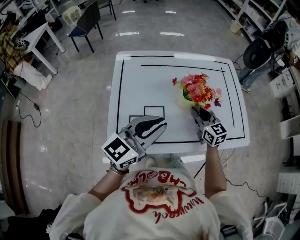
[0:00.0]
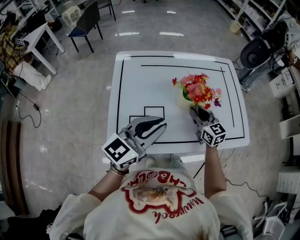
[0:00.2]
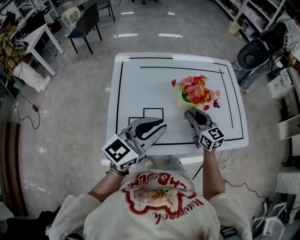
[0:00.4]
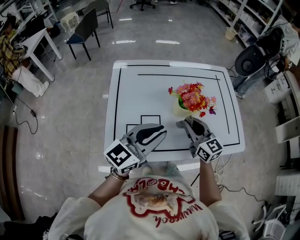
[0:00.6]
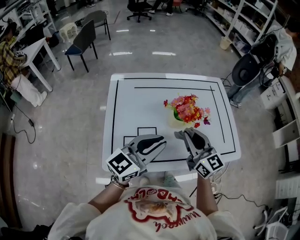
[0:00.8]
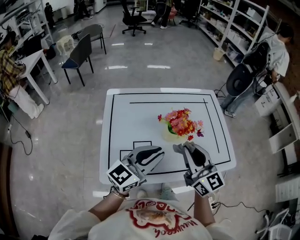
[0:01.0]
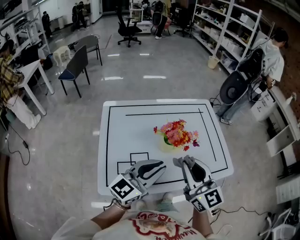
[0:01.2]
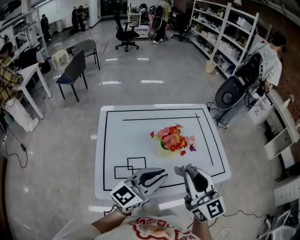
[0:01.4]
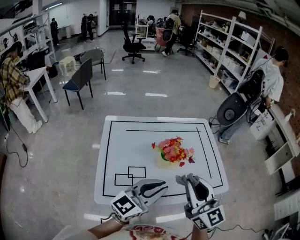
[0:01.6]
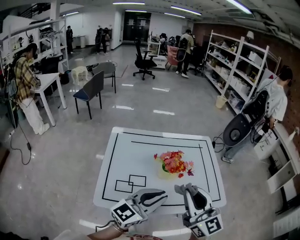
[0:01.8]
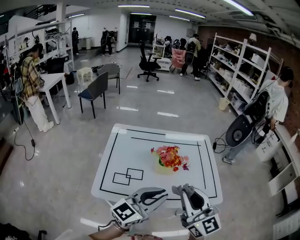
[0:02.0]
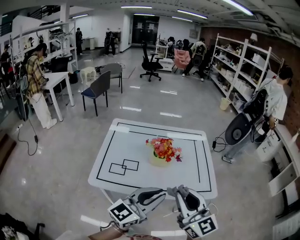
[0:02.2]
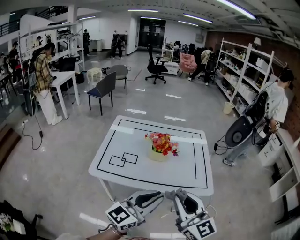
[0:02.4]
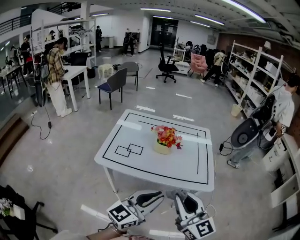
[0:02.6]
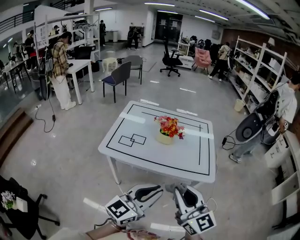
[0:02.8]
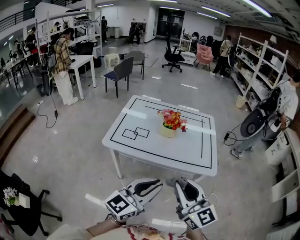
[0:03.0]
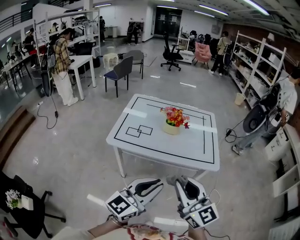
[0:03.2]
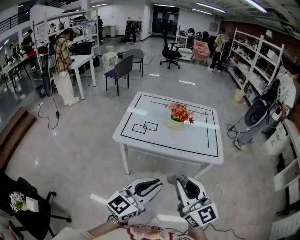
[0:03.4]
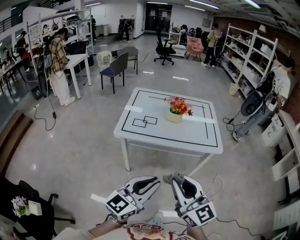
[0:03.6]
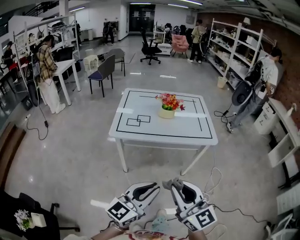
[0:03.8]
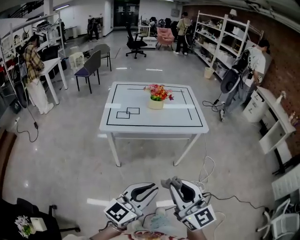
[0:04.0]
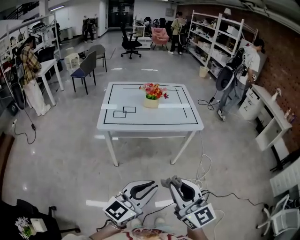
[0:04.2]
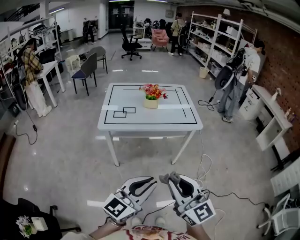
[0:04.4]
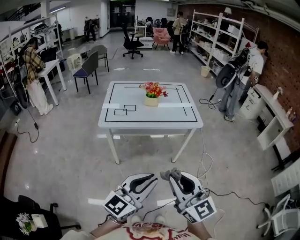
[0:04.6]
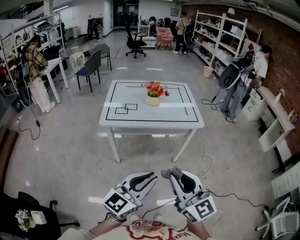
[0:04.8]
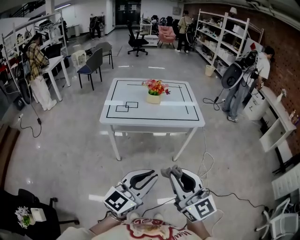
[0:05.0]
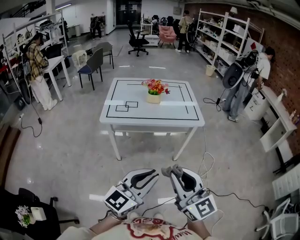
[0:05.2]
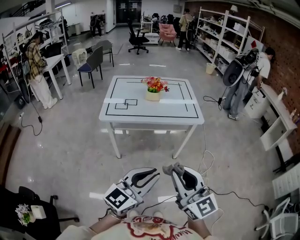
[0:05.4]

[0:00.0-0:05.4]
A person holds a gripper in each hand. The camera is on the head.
0:00.0 to 0:01.4: The right gripper shifts some 25 cm upward and backward, and swivels approximately 20 degrees, while the left gripper travels to the right by roughly 5 cm.
0:01.4 to 0:02.8: Both grippers travel together backward and to the right, roughly 30 cm. The left gripper swivels about 20 degrees, while the right gripper rotates approximately 20 degrees.
0:02.8 to 0:04.0: Both grippers move backward and to the left, about 25 cm.
0:04.0 to 0:05.4: The two grippers go about 5 cm to the right.

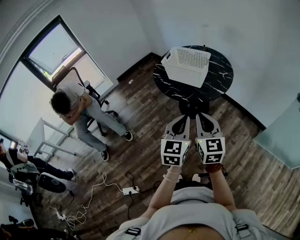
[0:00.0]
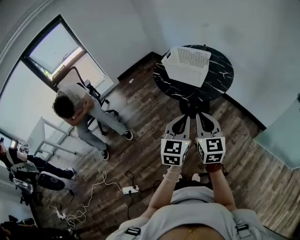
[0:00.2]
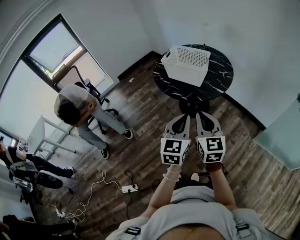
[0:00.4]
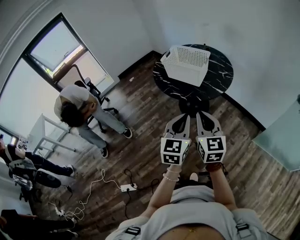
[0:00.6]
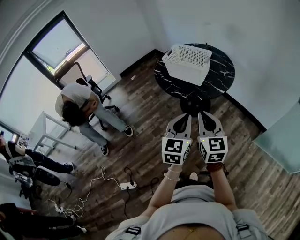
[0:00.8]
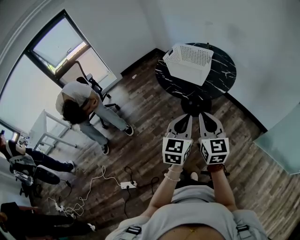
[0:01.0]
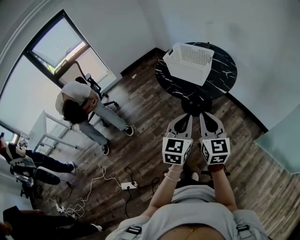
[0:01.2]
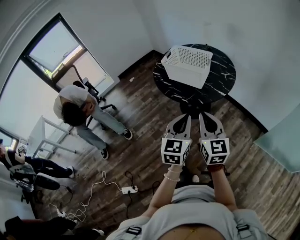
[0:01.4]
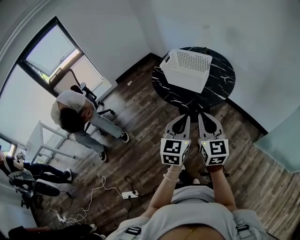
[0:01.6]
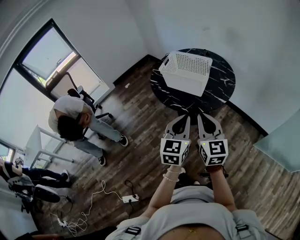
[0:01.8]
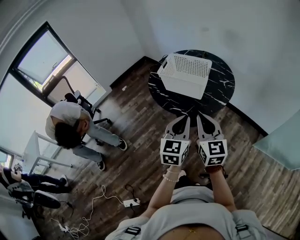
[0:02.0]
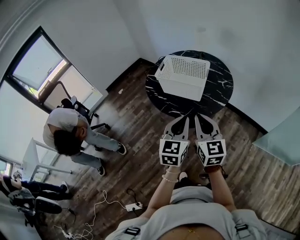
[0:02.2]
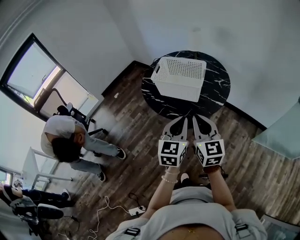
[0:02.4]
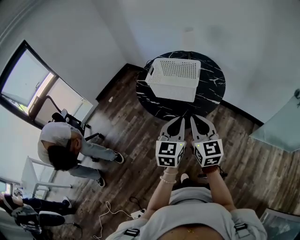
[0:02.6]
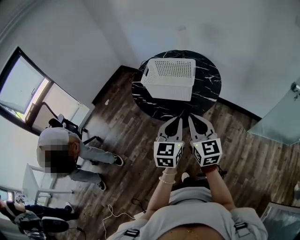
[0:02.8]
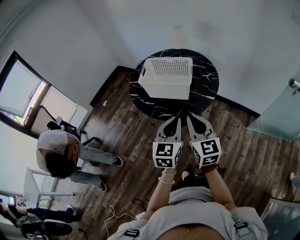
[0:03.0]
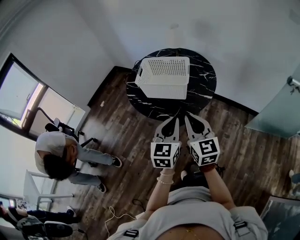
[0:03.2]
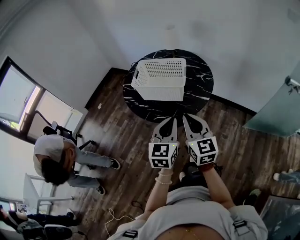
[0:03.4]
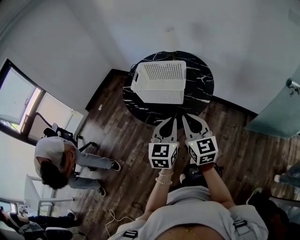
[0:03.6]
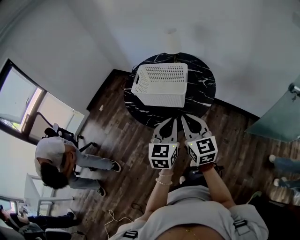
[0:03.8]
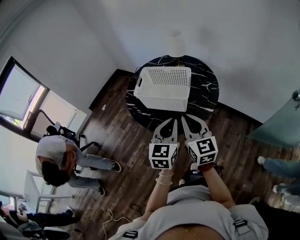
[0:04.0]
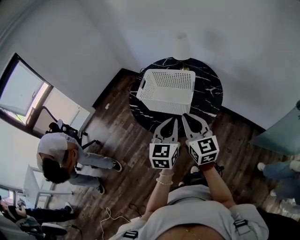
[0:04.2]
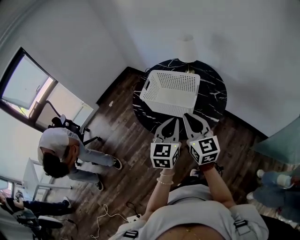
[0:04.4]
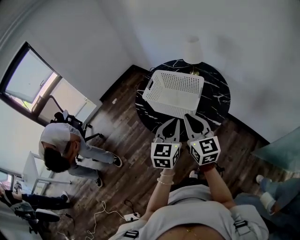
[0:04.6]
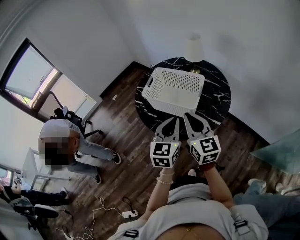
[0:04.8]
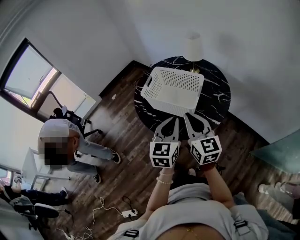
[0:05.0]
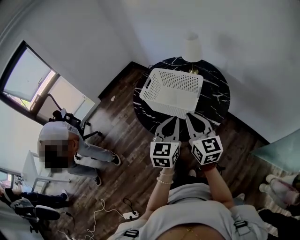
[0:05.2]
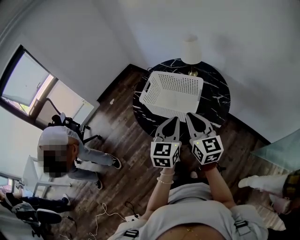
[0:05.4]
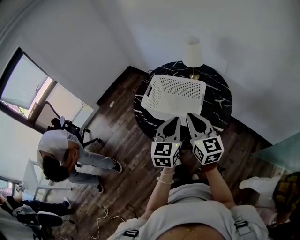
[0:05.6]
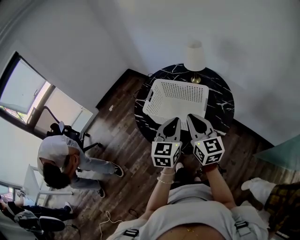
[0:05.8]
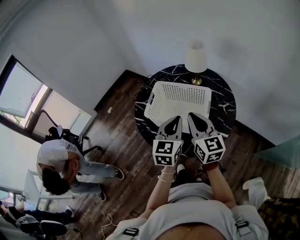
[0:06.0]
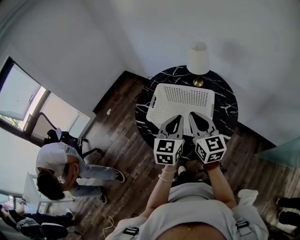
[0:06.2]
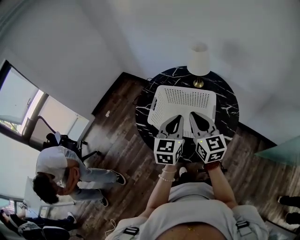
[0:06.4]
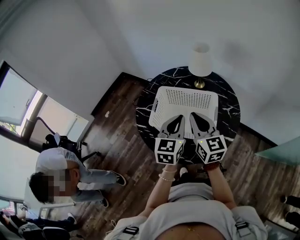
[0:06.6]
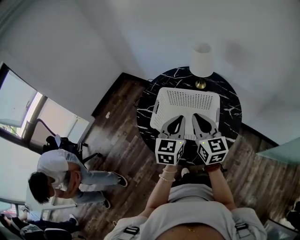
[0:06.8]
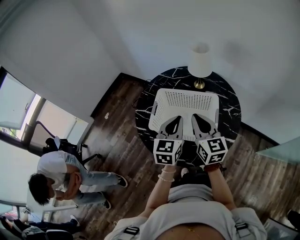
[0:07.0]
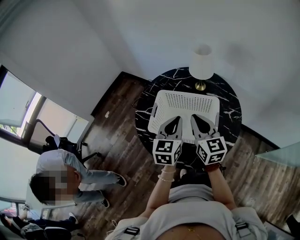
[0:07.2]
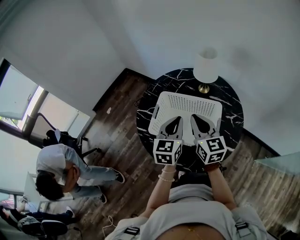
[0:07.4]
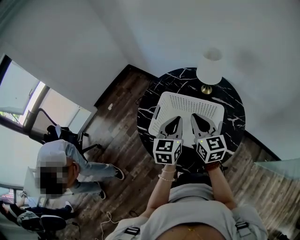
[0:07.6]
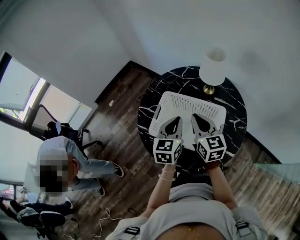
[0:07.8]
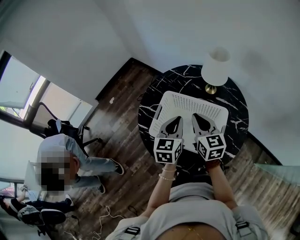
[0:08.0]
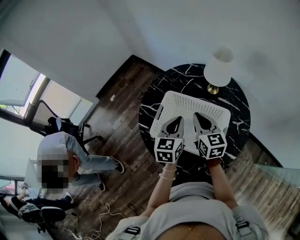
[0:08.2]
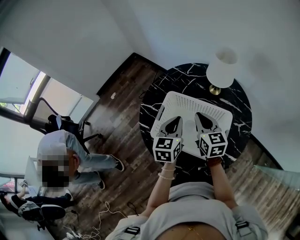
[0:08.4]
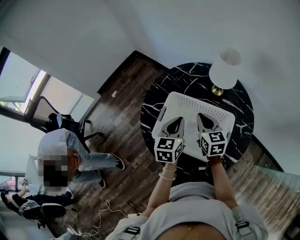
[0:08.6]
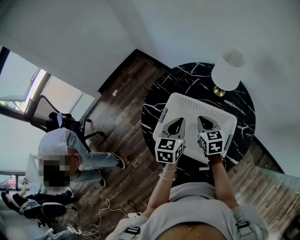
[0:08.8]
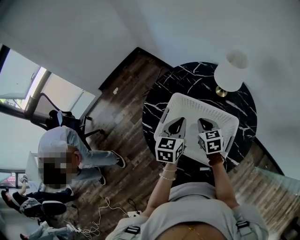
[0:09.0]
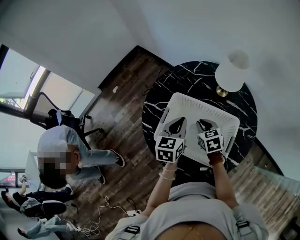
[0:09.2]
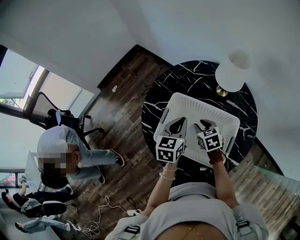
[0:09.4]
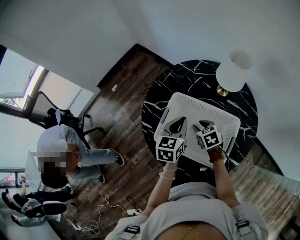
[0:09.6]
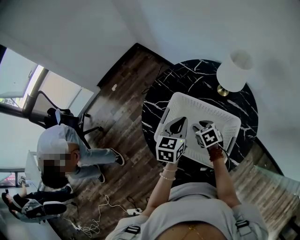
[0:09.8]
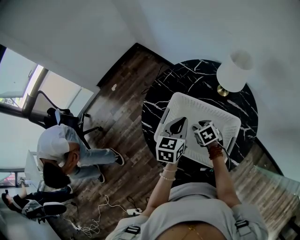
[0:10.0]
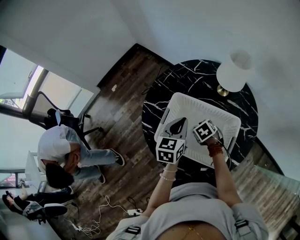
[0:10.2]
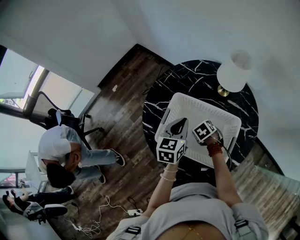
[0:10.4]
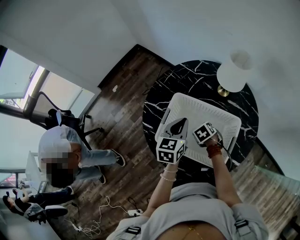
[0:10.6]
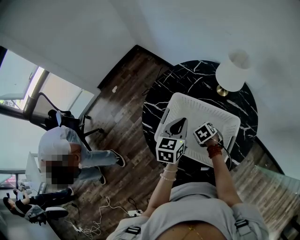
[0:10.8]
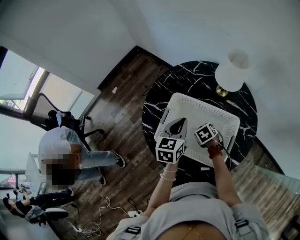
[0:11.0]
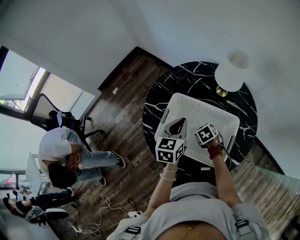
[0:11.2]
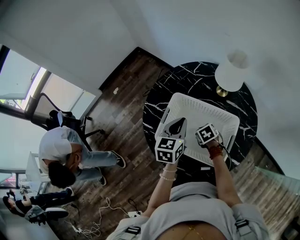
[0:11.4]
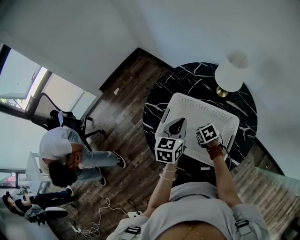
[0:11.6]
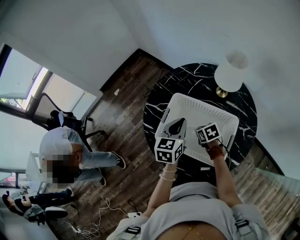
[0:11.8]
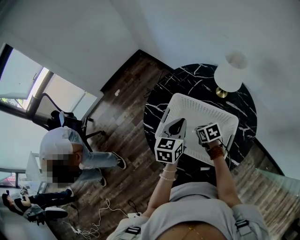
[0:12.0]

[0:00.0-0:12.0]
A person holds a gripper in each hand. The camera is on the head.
0:00.0 to 0:01.6: Both grippers travel together forward, roughly 5 cm.
0:01.6 to 0:03.0: Both grippers travel together forward and to the left, approximately 10 cm.
0:03.0 to 0:04.4: Both grippers travel together forward, about 15 cm.
0:04.4 to 0:06.0: Both grippers travel together forward, about 15 cm.
0:06.0 to 0:07.6: Both grippers move forward, some 15 cm.
0:07.6 to 0:09.0: The left gripper heads forward and downward, covering some 10 cm. The right gripper shifts about 20 cm downward and forward, and turns by roughly 30 degrees.
0:09.0 to 0:10.4: The right gripper heads downward, covering roughly 10 cm, angles its fingers downward, by about 30 degrees, and opens.
0:10.4 to 0:12.0: The right gripper turns by about 20 degrees, and closes up.

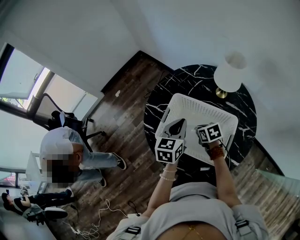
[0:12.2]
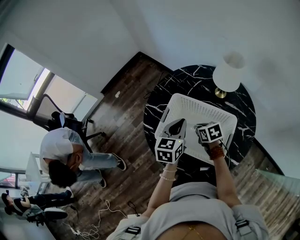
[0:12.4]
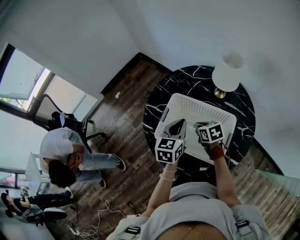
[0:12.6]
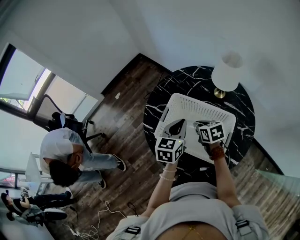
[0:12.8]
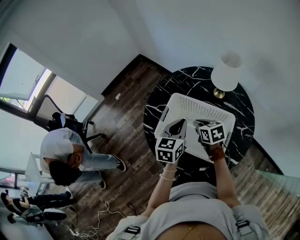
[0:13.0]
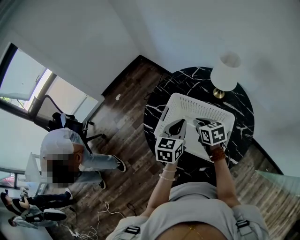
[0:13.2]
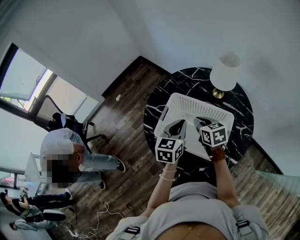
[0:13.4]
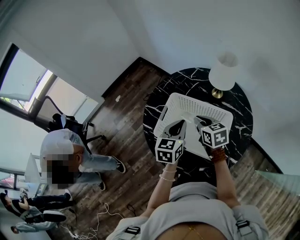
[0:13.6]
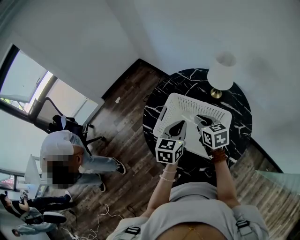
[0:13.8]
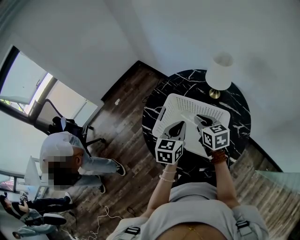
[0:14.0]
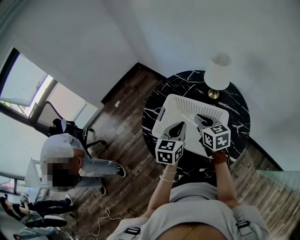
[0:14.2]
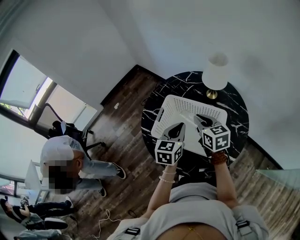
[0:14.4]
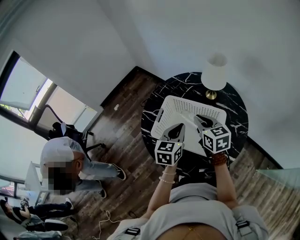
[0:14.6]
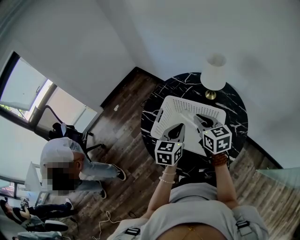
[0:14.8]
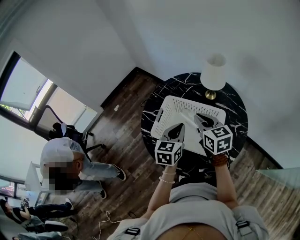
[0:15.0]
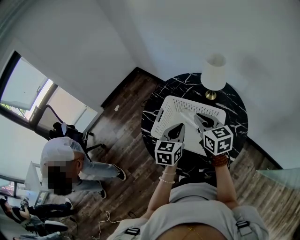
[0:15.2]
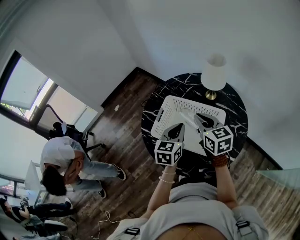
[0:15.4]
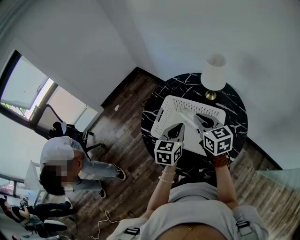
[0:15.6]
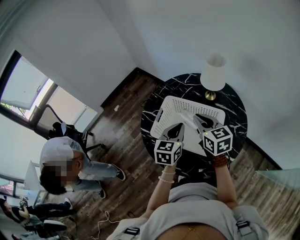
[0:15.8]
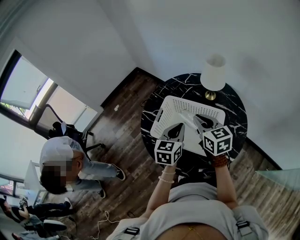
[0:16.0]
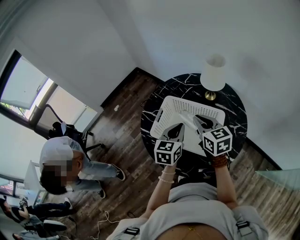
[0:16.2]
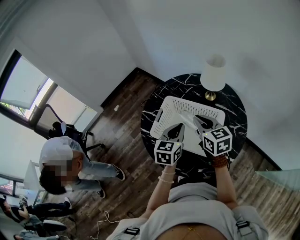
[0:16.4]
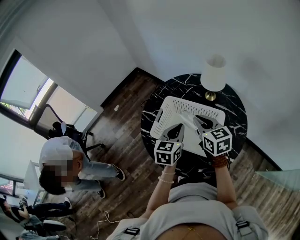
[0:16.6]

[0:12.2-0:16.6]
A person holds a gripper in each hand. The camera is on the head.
0:12.2 to 0:13.6: The right gripper shifts some 15 cm upward, and changes its angle by approximately 20 degrees.
0:13.6 to 0:15.2: The right gripper heads upward, covering some 10 cm.
0:15.2 to 0:16.6: Both grippers stay about where they are.

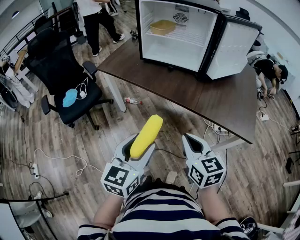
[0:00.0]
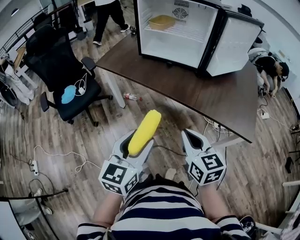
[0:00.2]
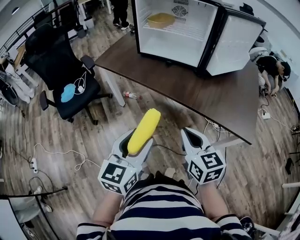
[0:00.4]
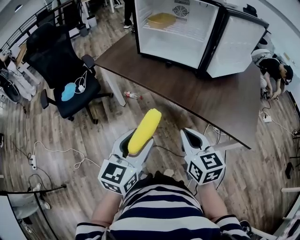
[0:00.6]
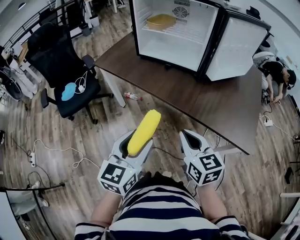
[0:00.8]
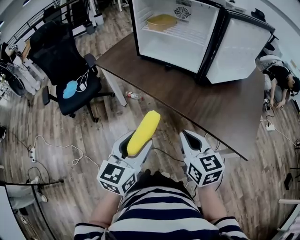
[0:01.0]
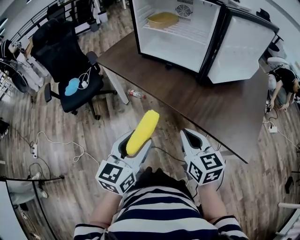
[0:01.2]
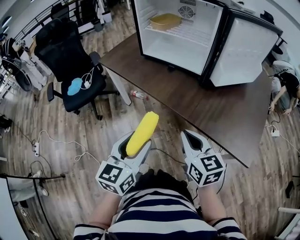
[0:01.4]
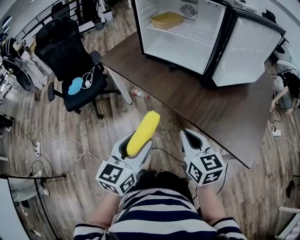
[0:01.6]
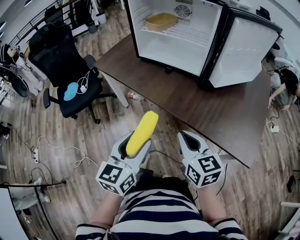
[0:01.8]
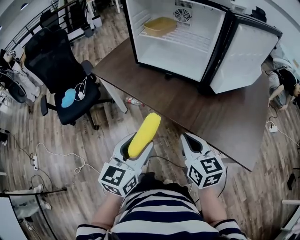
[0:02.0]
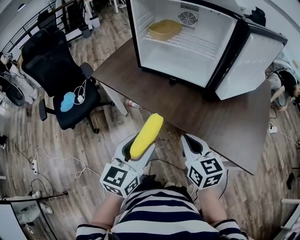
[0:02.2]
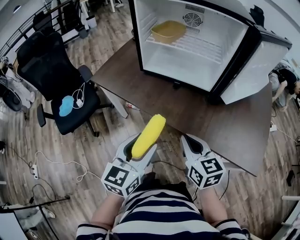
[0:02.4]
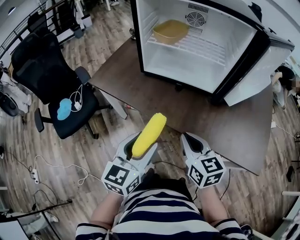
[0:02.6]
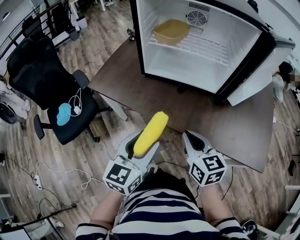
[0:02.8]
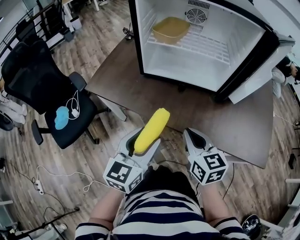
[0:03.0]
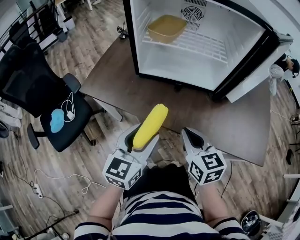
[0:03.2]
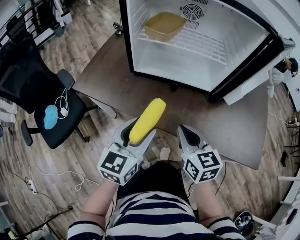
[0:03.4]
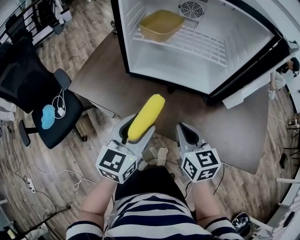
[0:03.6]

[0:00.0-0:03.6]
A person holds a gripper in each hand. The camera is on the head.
0:00.0 to 0:01.8: Both grippers move forward and to the right, approximately 15 cm.
0:01.8 to 0:03.6: The right gripper travels forward and to the left by roughly 25 cm. Meanwhile the left gripper goes approximately 25 cm forward.
